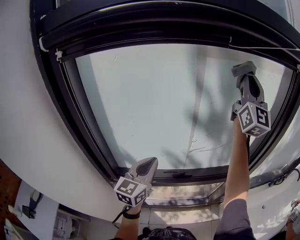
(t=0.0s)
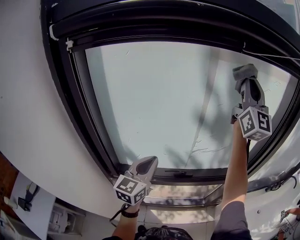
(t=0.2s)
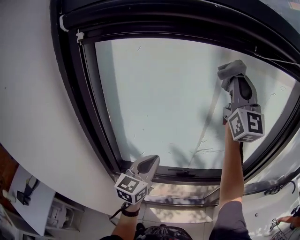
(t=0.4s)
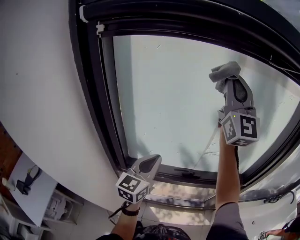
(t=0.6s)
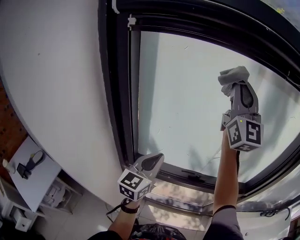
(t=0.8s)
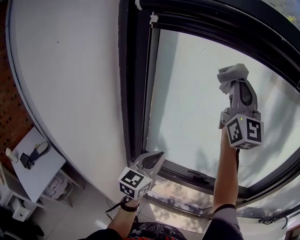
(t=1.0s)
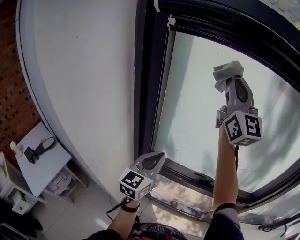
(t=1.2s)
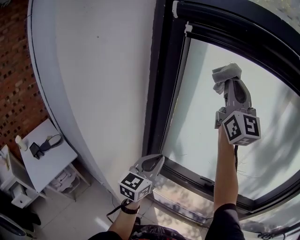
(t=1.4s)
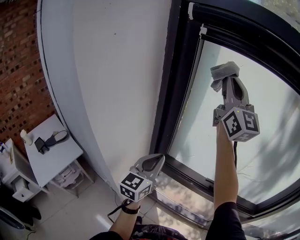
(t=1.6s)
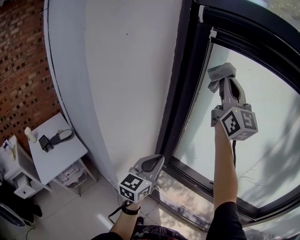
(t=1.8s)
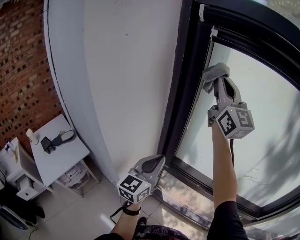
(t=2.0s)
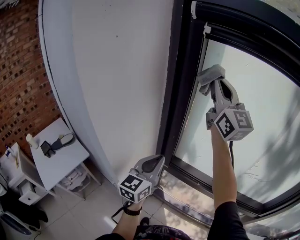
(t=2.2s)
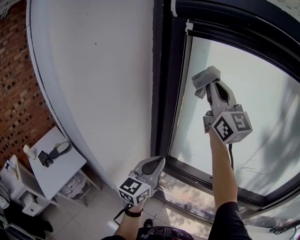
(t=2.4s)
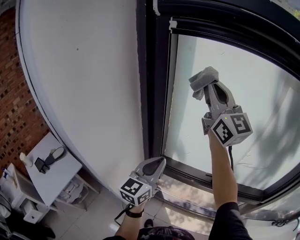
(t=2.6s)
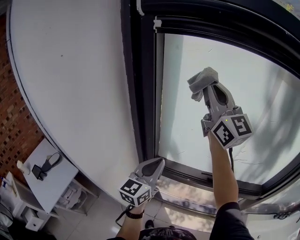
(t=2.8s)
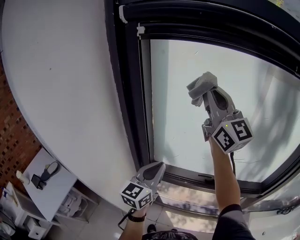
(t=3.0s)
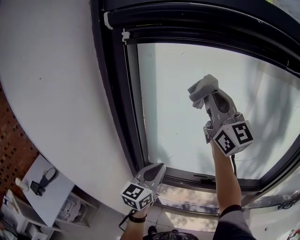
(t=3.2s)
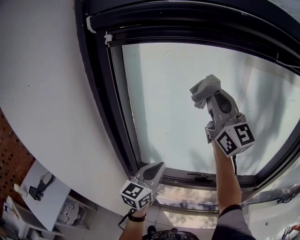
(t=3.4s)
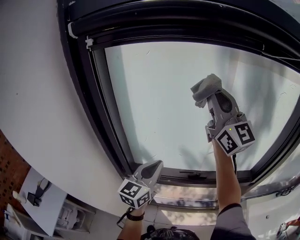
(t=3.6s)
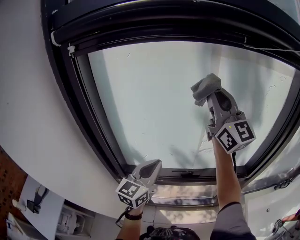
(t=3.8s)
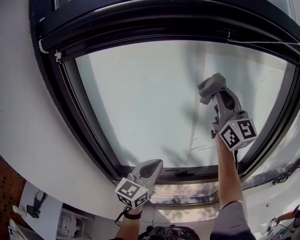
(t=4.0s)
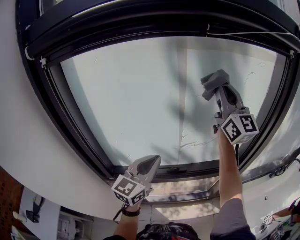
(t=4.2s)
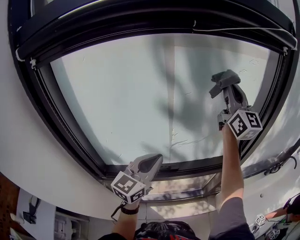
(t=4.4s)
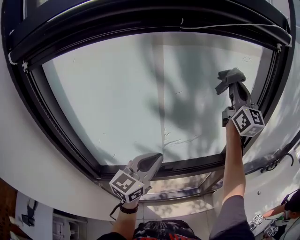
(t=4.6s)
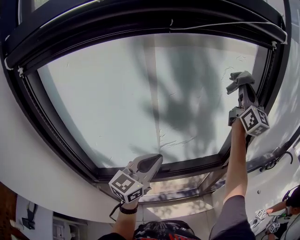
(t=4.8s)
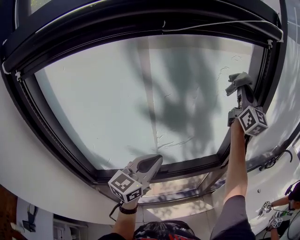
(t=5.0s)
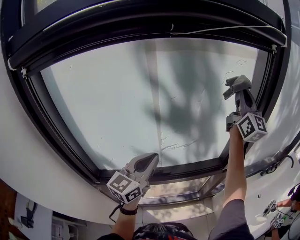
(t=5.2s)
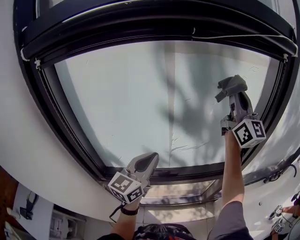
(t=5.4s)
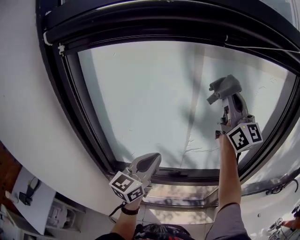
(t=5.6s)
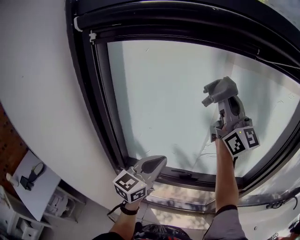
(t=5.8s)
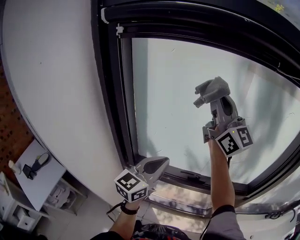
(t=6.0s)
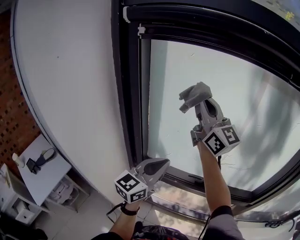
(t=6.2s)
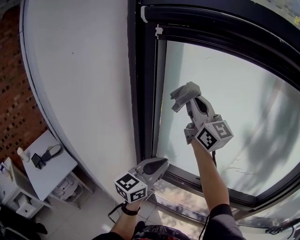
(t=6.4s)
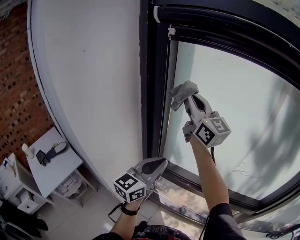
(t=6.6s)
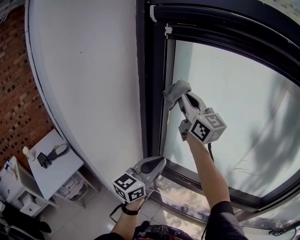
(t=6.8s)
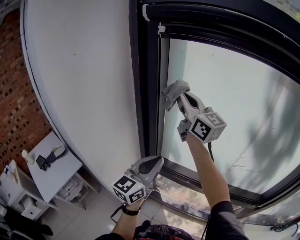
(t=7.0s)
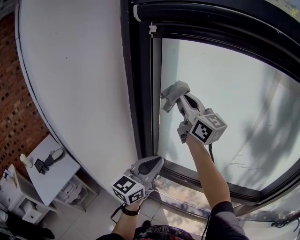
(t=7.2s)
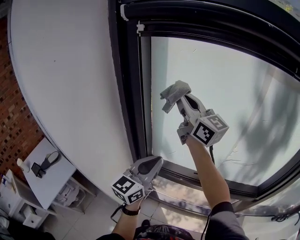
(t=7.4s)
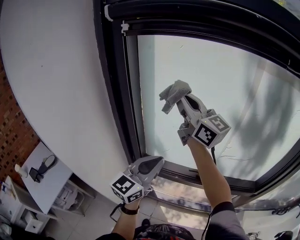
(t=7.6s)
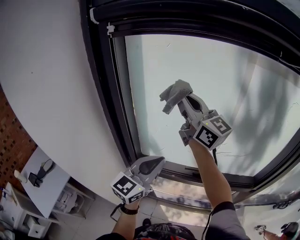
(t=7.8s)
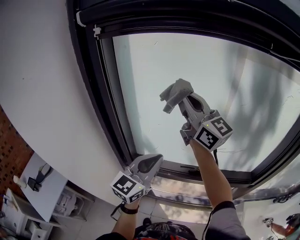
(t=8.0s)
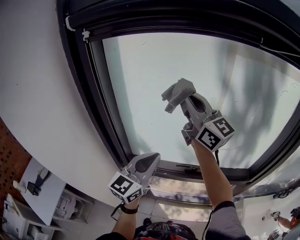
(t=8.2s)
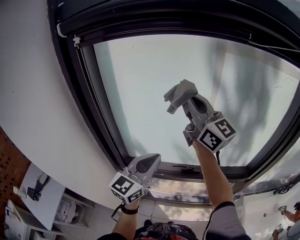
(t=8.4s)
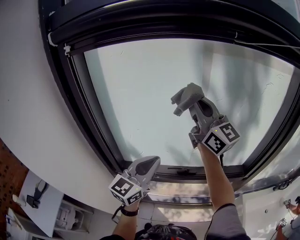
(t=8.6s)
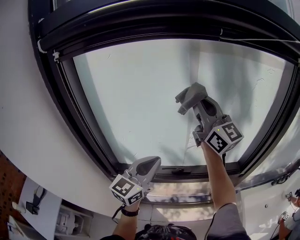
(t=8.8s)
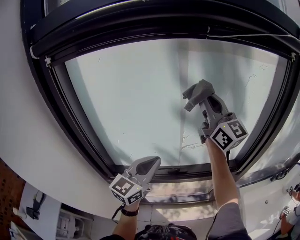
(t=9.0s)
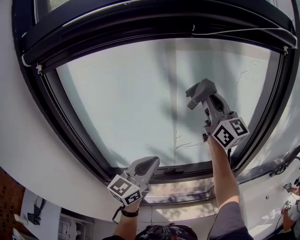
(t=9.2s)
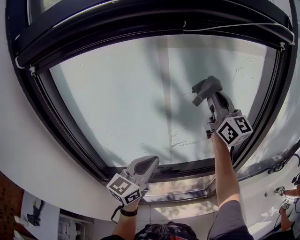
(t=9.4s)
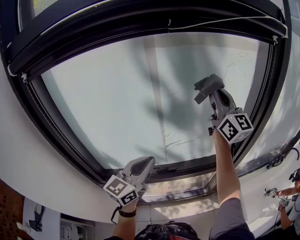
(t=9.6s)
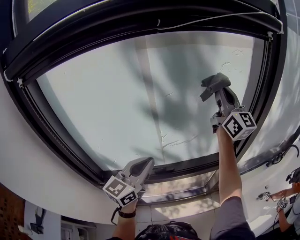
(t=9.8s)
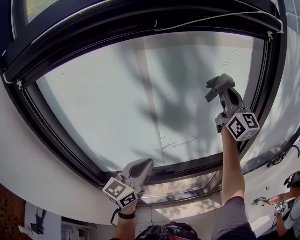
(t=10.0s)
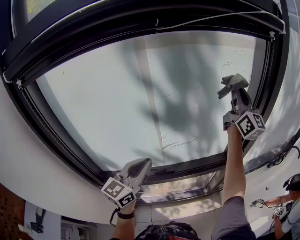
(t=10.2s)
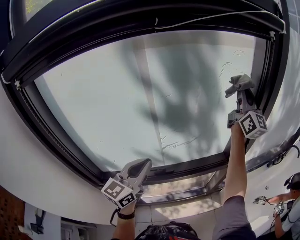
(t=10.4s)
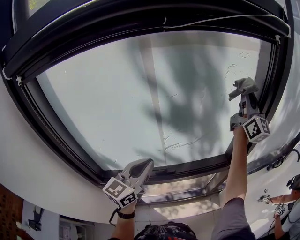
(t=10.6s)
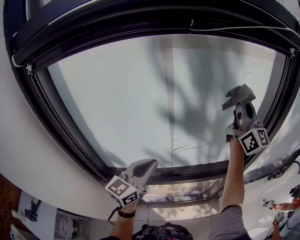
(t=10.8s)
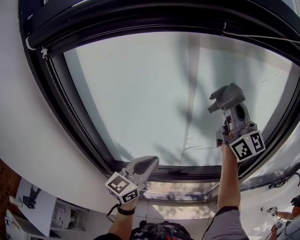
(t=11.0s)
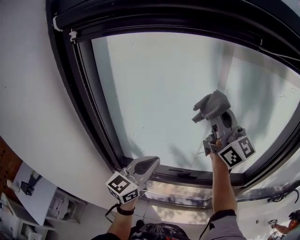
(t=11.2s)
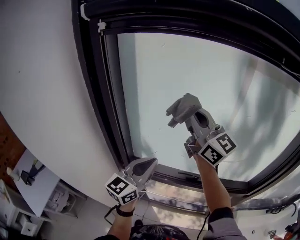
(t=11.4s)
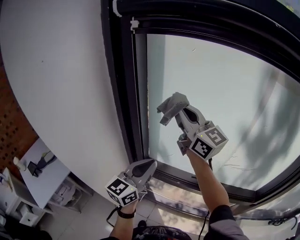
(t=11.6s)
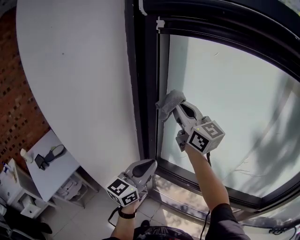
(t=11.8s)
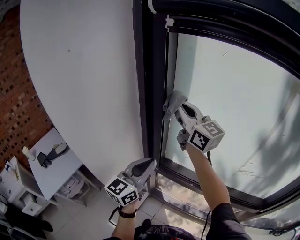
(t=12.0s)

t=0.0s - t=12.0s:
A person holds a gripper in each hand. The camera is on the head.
t=0.0s - t=1.6s: The right gripper moves about 40 cm, and turns by roughly 50 degrees. The left gripper changes place by roughly 25 cm, and rotates about 30 degrees.
t=1.6s - t=3.0s: Both grippers move to the right, roughly 5 cm.
t=3.0s - t=4.4s: The left gripper ends up roughly 25 cm from where it was, and turns by about 30 degrees, while the right gripper shifts by about 40 cm, and changes its angle by about 30 degrees.
t=4.4s - t=6.0s: The left gripper ends up roughly 15 cm from where it was, while the right gripper moves roughly 30 cm, and swivels approximately 40 degrees.
t=6.0s - t=7.6s: The right gripper heads to the left, downward and forward, covering some 15 cm, and changes its angle by about 20 degrees. Meanwhile the left gripper shifts roughly 5 cm to the left.
t=7.6s - t=9.0s: The right gripper travels to the right by about 30 cm, and turns by roughly 30 degrees, while the left gripper is displaced to the right by some 15 cm.
t=9.0s - t=10.4s: The left gripper shifts by about 5 cm; the right gripper travels to the right by some 25 cm, and swivels some 30 degrees.
t=10.4s - t=12.0s: The right gripper ends up about 70 cm from where it was, and turns by roughly 70 degrees, while the left gripper changes place by some 35 cm, and rotates about 40 degrees.

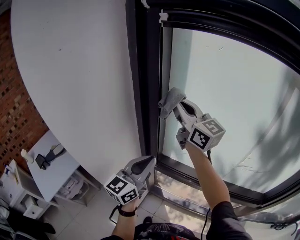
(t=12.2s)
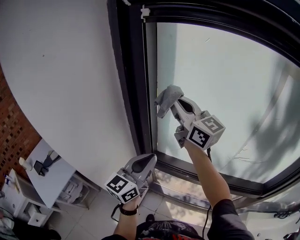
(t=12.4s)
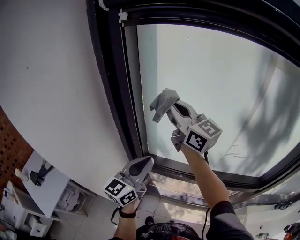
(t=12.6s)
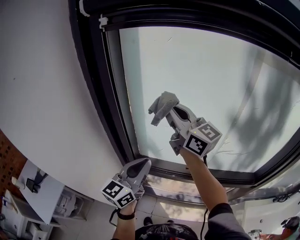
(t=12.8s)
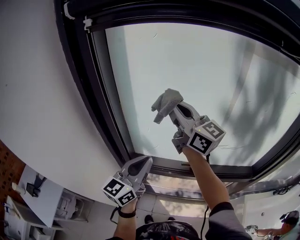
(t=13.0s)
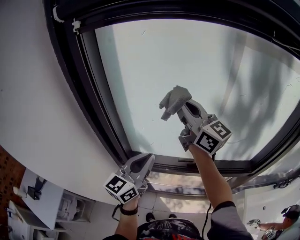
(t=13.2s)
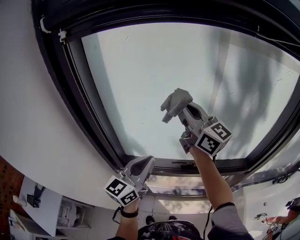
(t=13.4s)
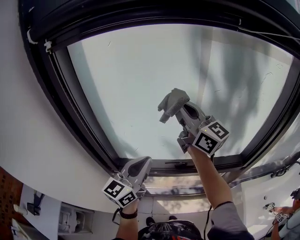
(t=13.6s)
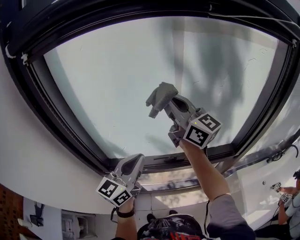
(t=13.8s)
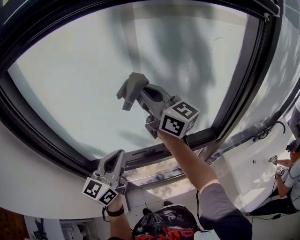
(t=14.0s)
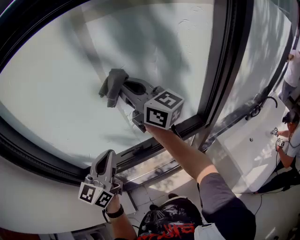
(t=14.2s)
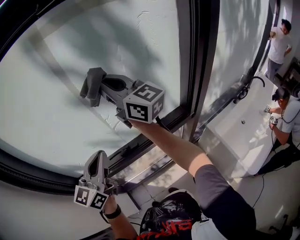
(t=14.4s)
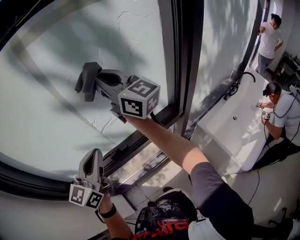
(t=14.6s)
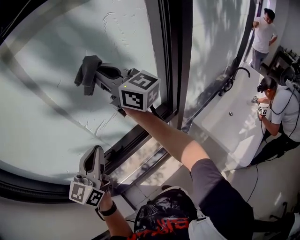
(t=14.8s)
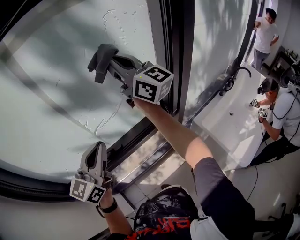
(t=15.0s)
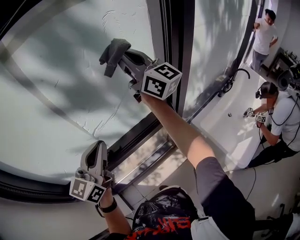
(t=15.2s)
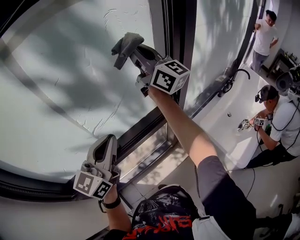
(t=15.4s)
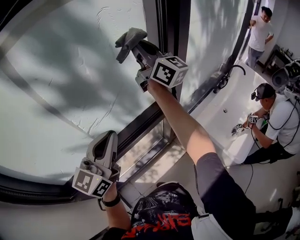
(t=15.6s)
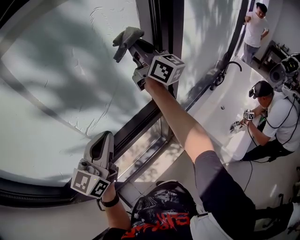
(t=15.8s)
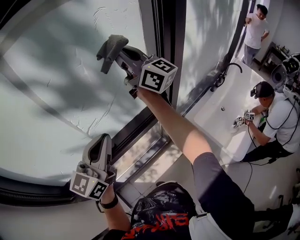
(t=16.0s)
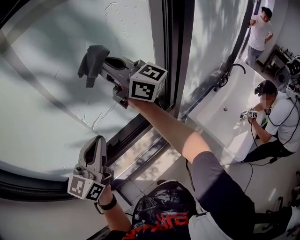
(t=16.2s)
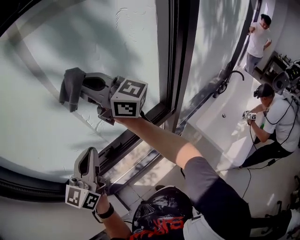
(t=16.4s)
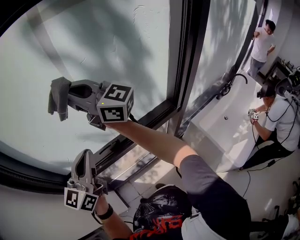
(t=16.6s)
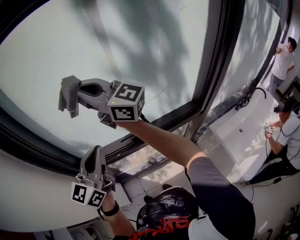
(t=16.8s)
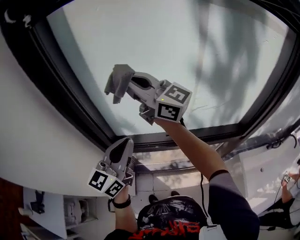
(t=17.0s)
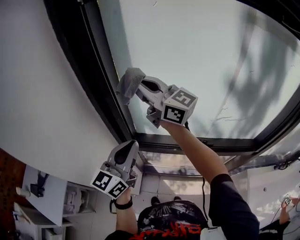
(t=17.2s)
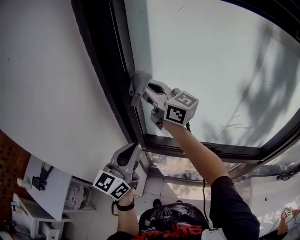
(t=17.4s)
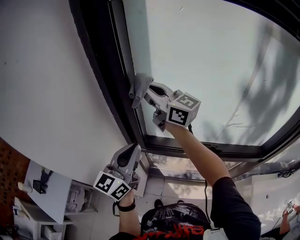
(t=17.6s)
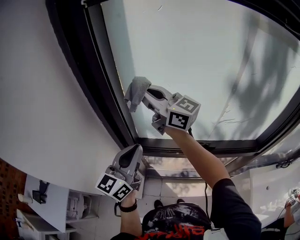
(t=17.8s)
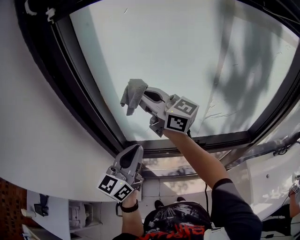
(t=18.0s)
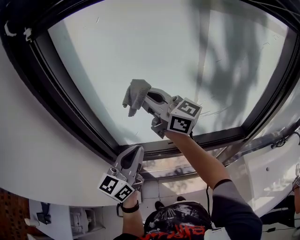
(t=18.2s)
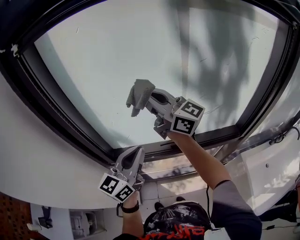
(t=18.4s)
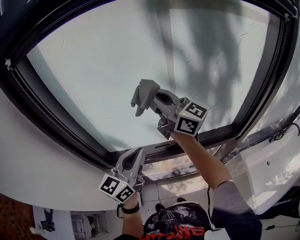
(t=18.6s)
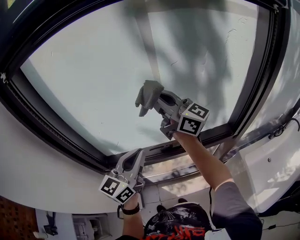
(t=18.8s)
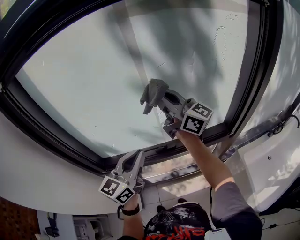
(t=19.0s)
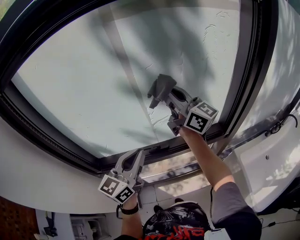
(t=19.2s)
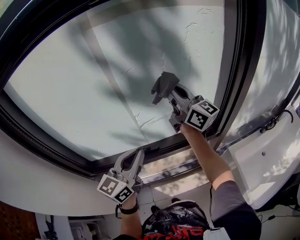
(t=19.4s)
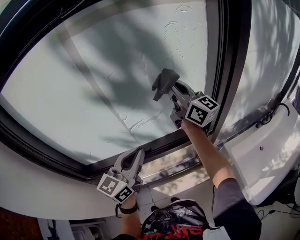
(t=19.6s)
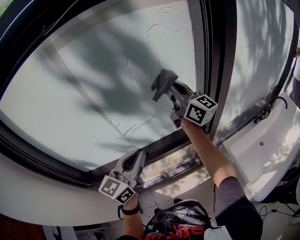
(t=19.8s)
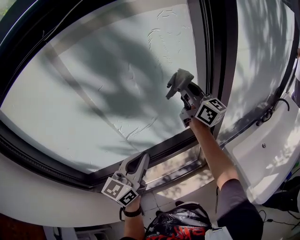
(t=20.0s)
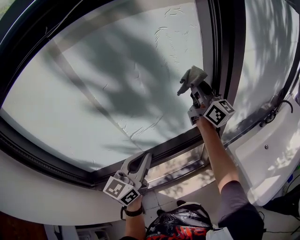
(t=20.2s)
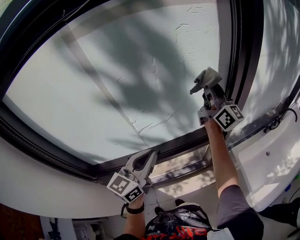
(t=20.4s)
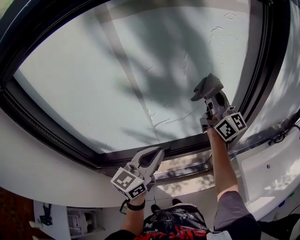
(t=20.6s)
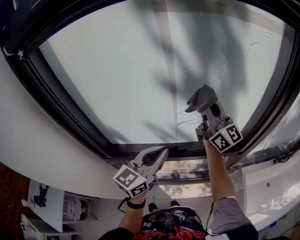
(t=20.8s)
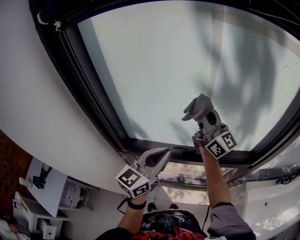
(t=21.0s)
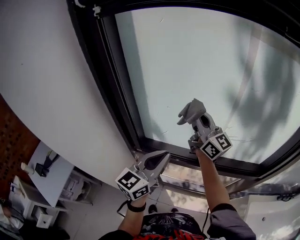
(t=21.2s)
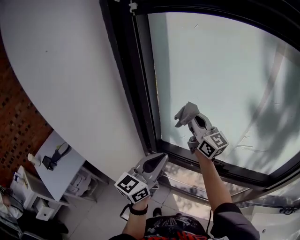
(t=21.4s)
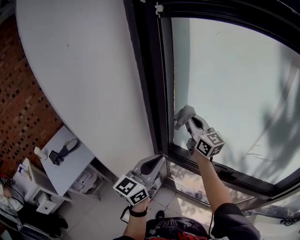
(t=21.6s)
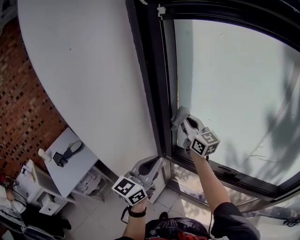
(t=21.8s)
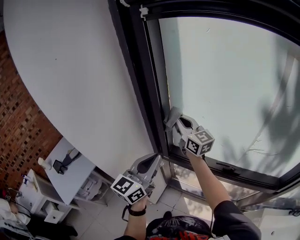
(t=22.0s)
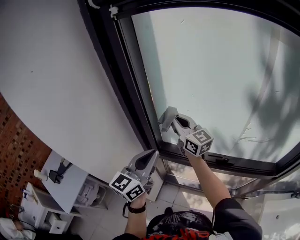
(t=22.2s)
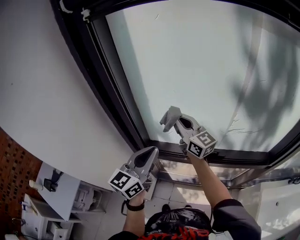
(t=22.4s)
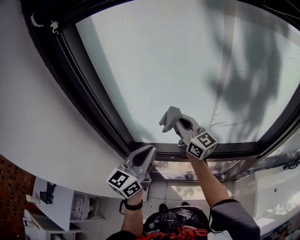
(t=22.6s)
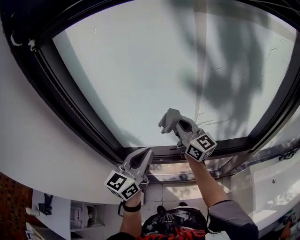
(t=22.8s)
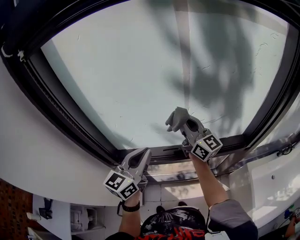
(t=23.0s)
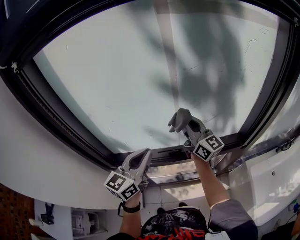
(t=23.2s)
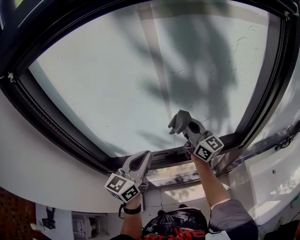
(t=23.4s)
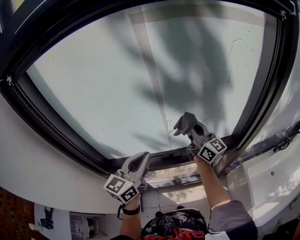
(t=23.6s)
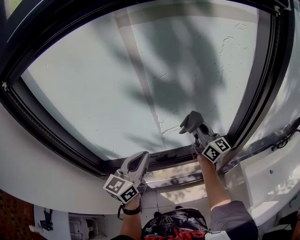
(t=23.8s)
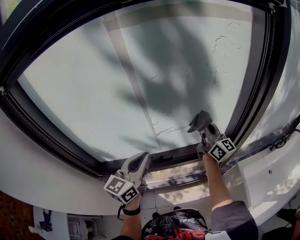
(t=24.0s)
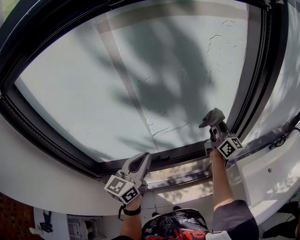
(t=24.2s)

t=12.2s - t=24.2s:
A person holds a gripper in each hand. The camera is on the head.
t=12.2s - t=13.8s: The right gripper changes place by about 30 cm, and turns by approximately 30 degrees. The left gripper ends up roughly 20 cm from where it was, and changes its angle by some 30 degrees.
t=13.8s - t=15.2s: The right gripper heads to the right, covering about 30 cm, and swivels roughly 30 degrees. The left gripper is displaced to the right by about 20 cm, and turns by about 20 degrees.
t=15.2s - t=16.6s: The left gripper moves about 15 cm. The right gripper moves about 30 cm, and rotates about 30 degrees.
t=16.6s - t=18.2s: The right gripper is displaced to the left, forward and downward by approximately 15 cm, while the left gripper moves to the left, some 15 cm.
t=18.2s - t=19.8s: The right gripper shifts by roughly 50 cm, and turns by some 30 degrees; the left gripper ends up roughly 30 cm from where it was.
t=19.8s - t=21.2s: The left gripper ends up approximately 25 cm from where it was, and swivels roughly 30 degrees; the right gripper changes place by some 40 cm, and turns by some 30 degrees.
t=21.2s - t=22.6s: The right gripper goes some 5 cm downward, and moves some 20 cm to the left and comes back. The left gripper travels to the left and back again, approximately 15 cm each way.
t=22.6s - t=24.2s: The left gripper shifts by approximately 20 cm. Meanwhile the right gripper shifts by some 50 cm, and changes its angle by roughly 40 degrees.
